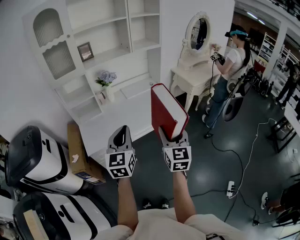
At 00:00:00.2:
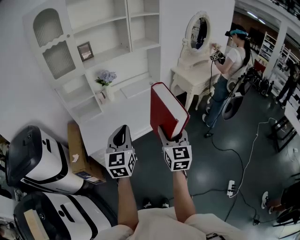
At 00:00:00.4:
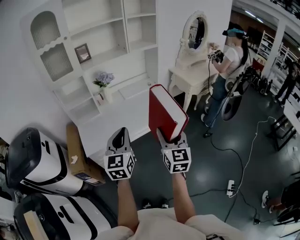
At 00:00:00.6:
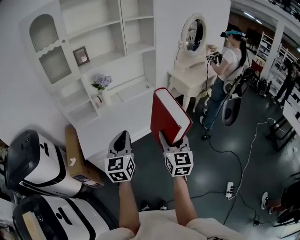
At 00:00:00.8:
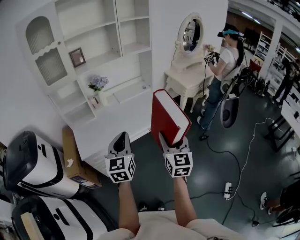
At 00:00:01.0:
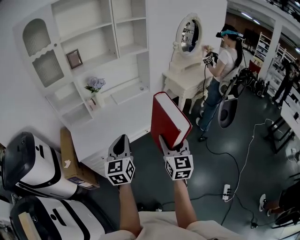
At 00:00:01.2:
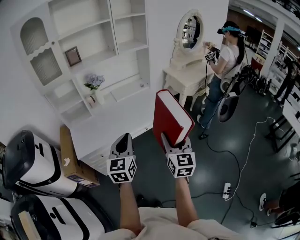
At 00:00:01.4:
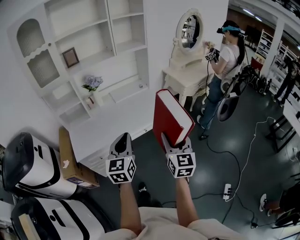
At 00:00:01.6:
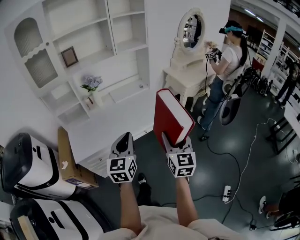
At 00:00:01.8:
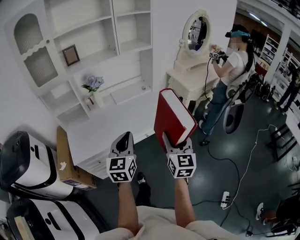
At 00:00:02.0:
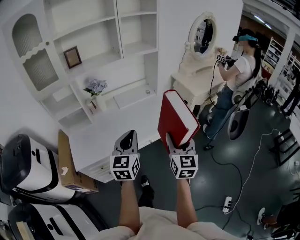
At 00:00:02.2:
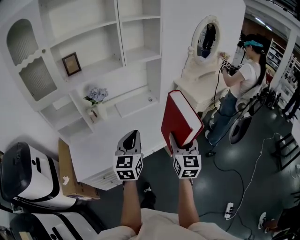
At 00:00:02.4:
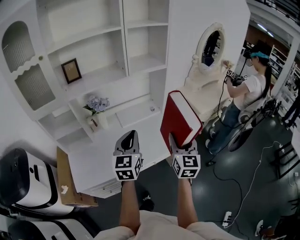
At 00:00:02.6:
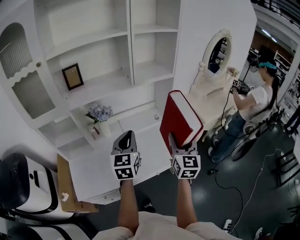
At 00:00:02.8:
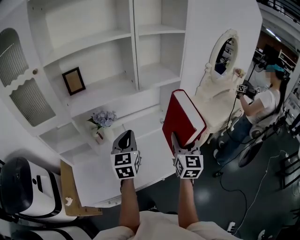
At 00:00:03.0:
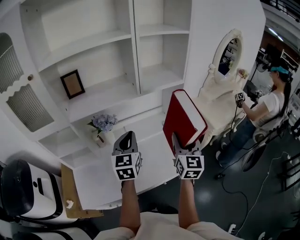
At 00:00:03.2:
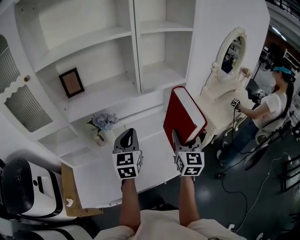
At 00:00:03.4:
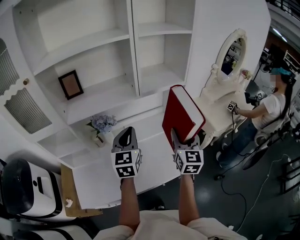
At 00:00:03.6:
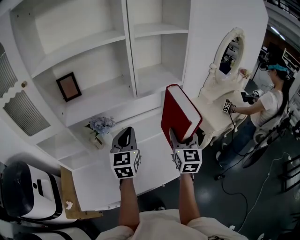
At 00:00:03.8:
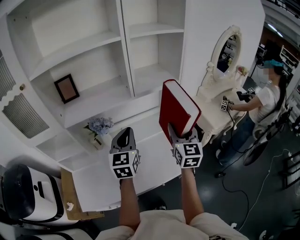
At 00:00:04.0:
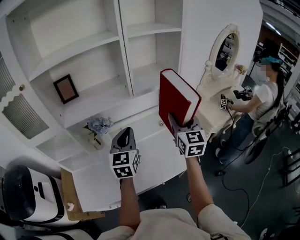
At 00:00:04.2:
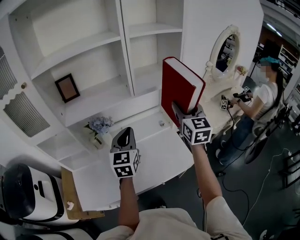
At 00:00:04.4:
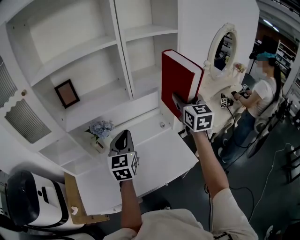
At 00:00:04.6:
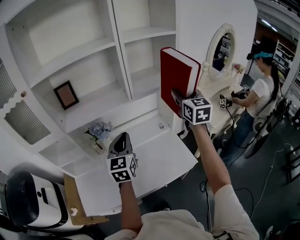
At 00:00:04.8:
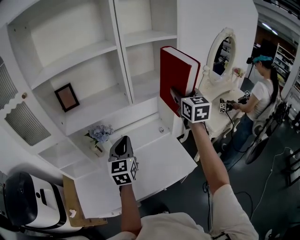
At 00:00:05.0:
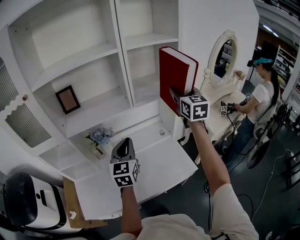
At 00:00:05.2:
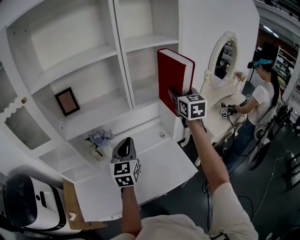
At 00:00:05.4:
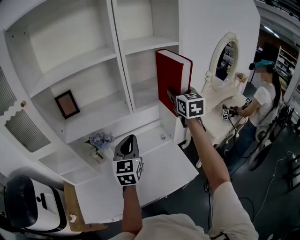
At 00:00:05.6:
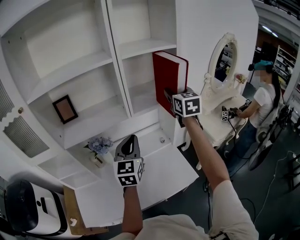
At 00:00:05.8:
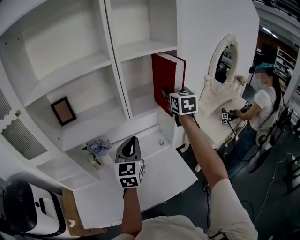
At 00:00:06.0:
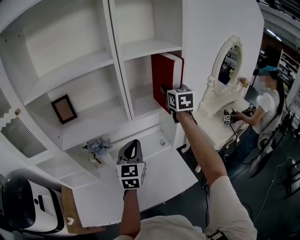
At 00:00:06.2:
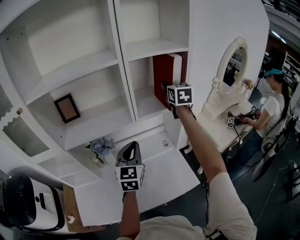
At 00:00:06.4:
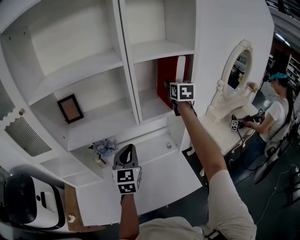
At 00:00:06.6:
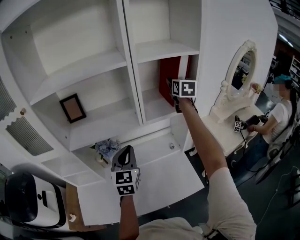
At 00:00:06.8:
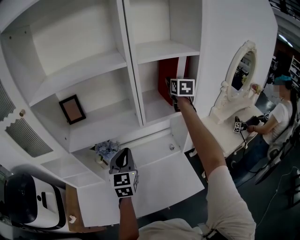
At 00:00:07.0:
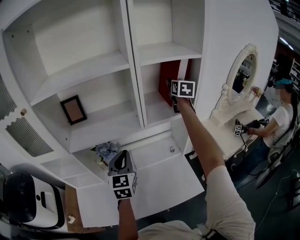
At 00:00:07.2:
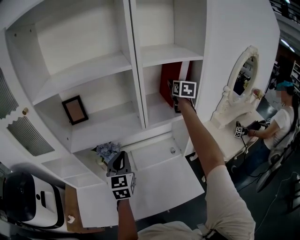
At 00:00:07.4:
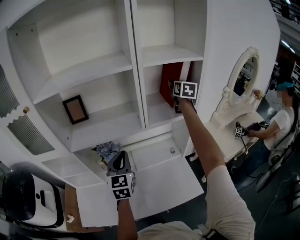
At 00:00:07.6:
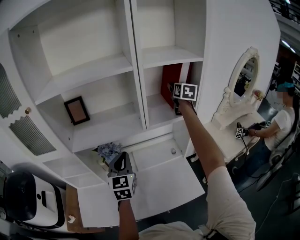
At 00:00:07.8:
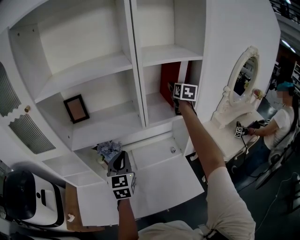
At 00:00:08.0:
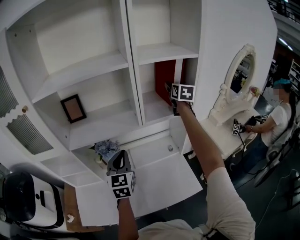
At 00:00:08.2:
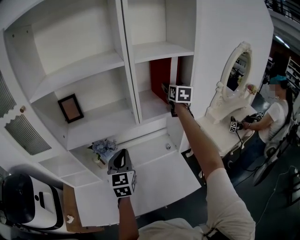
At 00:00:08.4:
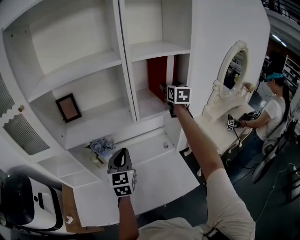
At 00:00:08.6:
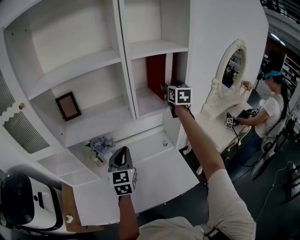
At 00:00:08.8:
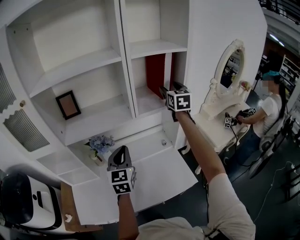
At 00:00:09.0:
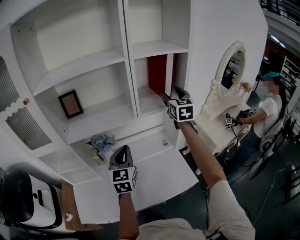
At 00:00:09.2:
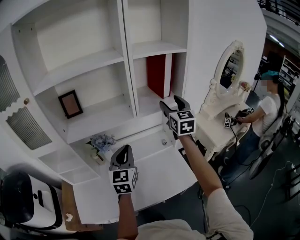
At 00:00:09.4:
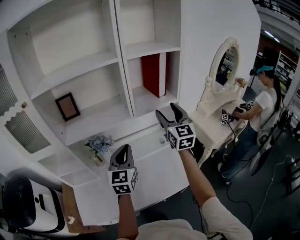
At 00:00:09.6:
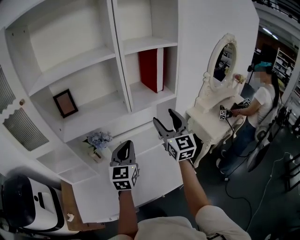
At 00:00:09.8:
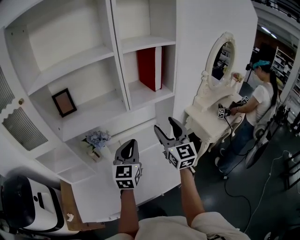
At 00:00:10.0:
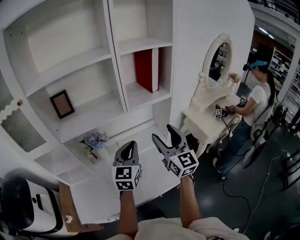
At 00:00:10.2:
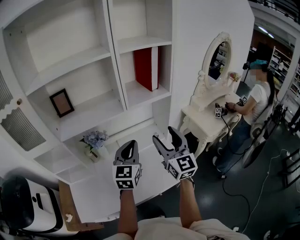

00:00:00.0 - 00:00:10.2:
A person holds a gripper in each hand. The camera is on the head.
00:00:00.0 - 00:00:01.4: Both grippers travel together to the right, approximately 10 cm.
00:00:01.4 - 00:00:03.0: The two grippers travel together, forward, about 50 cm.
00:00:03.0 - 00:00:04.4: The right gripper heads forward and upward, covering about 20 cm.
00:00:04.4 - 00:00:05.8: The left gripper goes about 10 cm forward and to the right. Meanwhile the right gripper travels forward by roughly 15 cm.
00:00:05.8 - 00:00:07.2: The right gripper shifts approximately 15 cm forward; the left gripper shifts approximately 10 cm to the left.
00:00:07.2 - 00:00:08.8: The right gripper moves backward, approximately 10 cm, while the left gripper changes place by roughly 5 cm.
00:00:08.8 - 00:00:10.2: The left gripper shifts approximately 5 cm to the right; the right gripper travels backward by about 30 cm.

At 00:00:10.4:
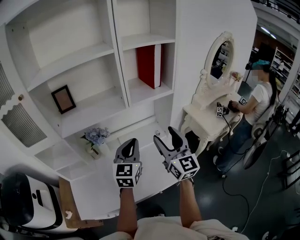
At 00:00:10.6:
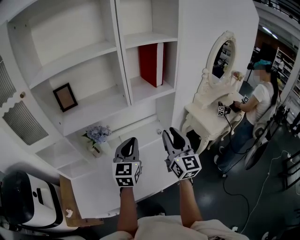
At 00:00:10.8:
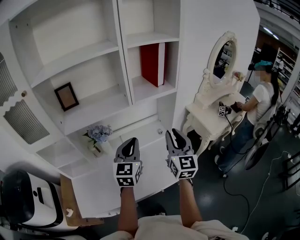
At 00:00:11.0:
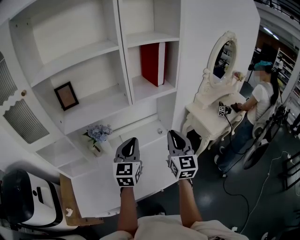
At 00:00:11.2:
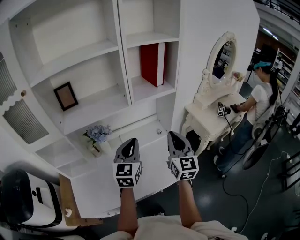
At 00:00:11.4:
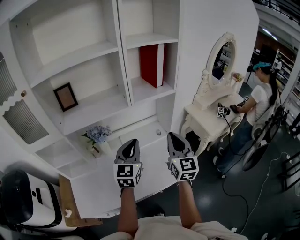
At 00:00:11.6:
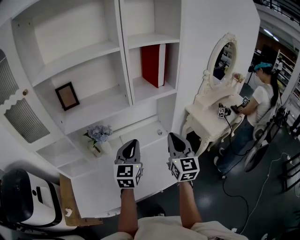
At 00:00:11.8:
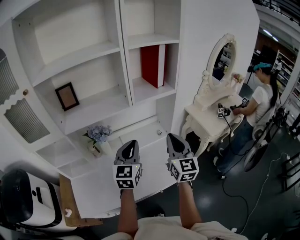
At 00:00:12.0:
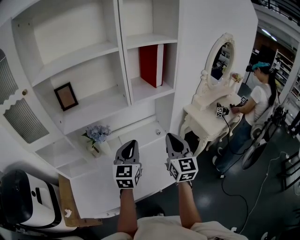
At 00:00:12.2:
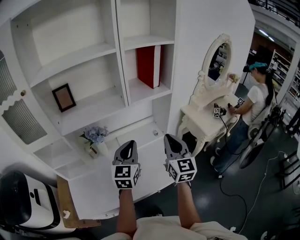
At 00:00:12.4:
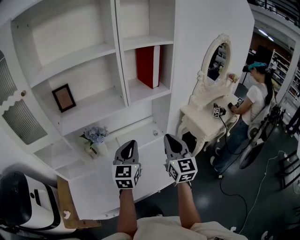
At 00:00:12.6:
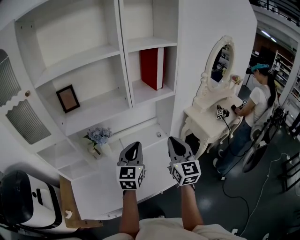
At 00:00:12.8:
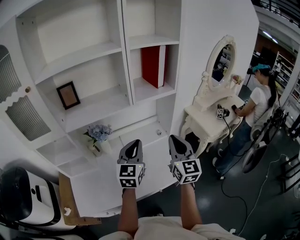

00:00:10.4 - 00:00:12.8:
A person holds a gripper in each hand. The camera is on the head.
00:00:10.4 - 00:00:11.6: The right gripper closes up.
00:00:11.6 - 00:00:12.8: There are only small adjustments of the grippers.

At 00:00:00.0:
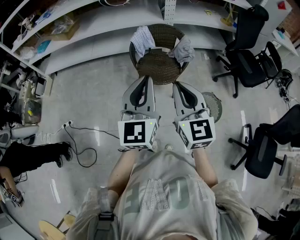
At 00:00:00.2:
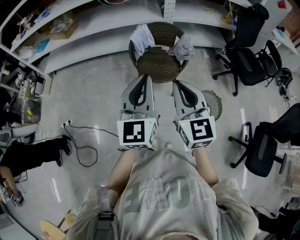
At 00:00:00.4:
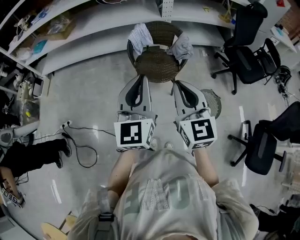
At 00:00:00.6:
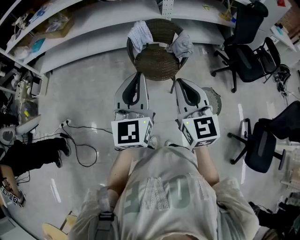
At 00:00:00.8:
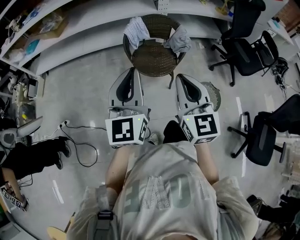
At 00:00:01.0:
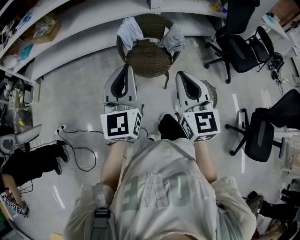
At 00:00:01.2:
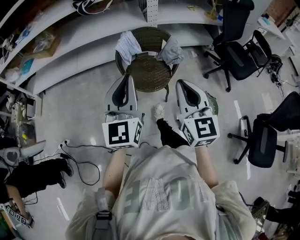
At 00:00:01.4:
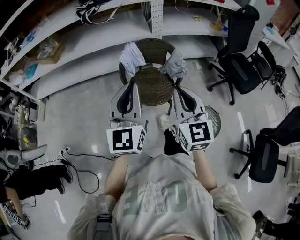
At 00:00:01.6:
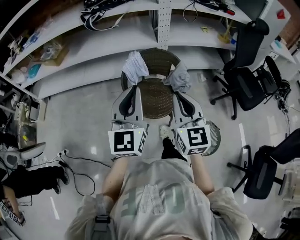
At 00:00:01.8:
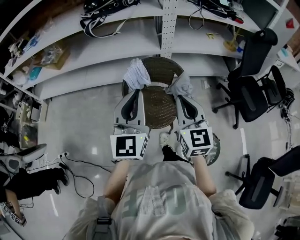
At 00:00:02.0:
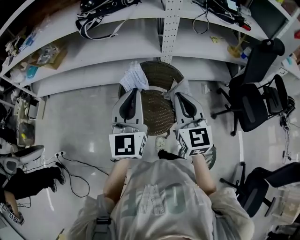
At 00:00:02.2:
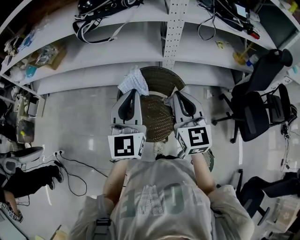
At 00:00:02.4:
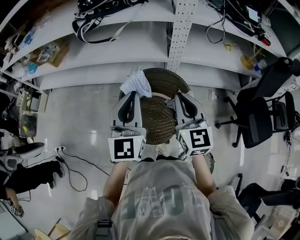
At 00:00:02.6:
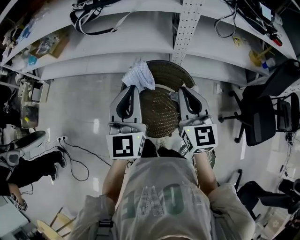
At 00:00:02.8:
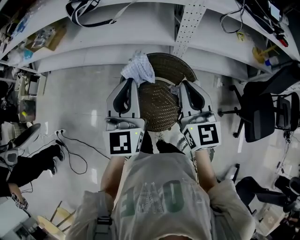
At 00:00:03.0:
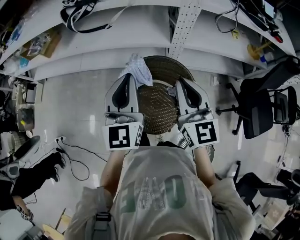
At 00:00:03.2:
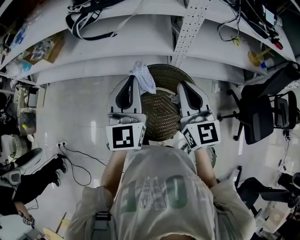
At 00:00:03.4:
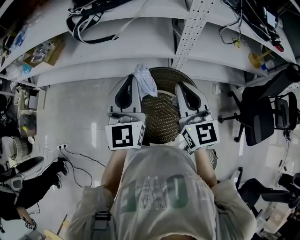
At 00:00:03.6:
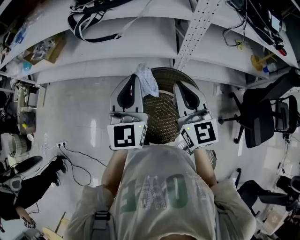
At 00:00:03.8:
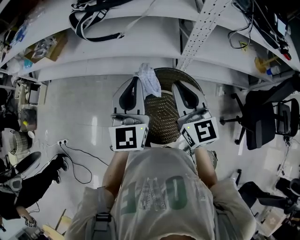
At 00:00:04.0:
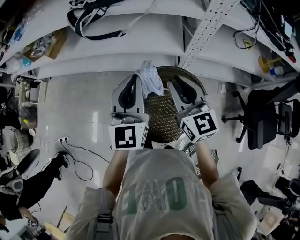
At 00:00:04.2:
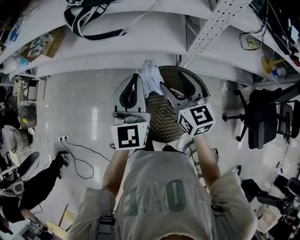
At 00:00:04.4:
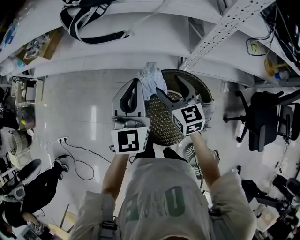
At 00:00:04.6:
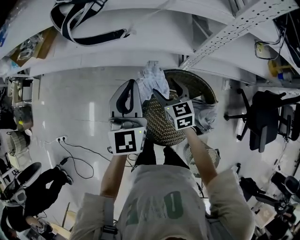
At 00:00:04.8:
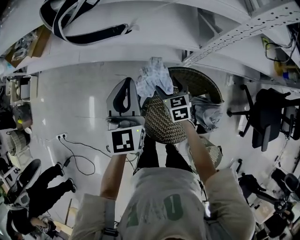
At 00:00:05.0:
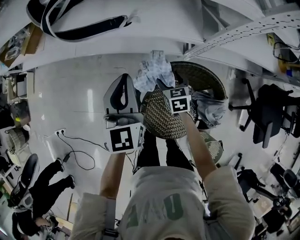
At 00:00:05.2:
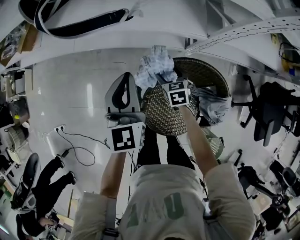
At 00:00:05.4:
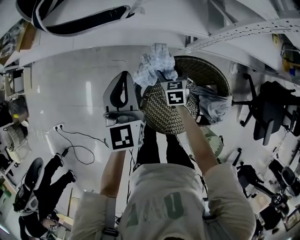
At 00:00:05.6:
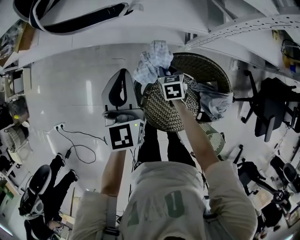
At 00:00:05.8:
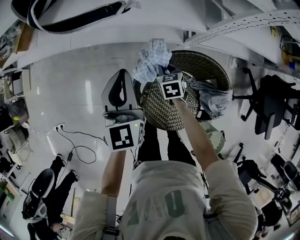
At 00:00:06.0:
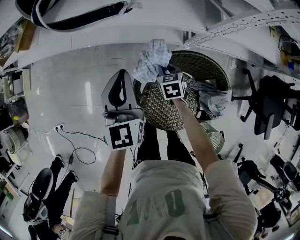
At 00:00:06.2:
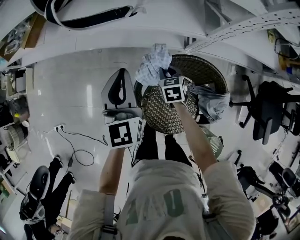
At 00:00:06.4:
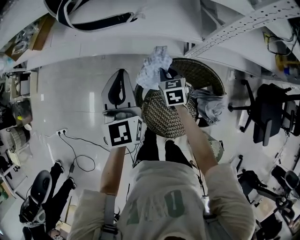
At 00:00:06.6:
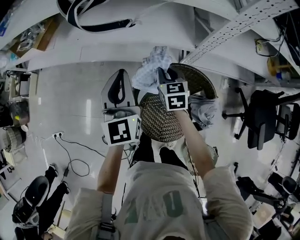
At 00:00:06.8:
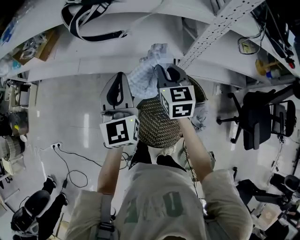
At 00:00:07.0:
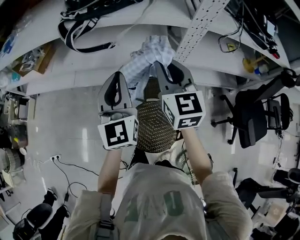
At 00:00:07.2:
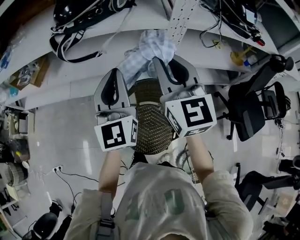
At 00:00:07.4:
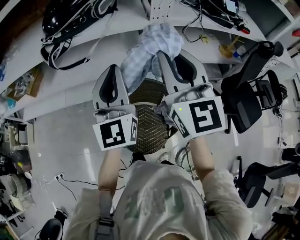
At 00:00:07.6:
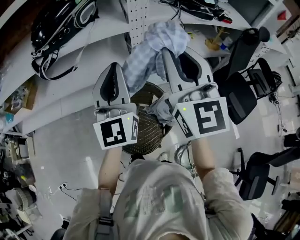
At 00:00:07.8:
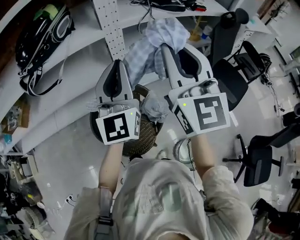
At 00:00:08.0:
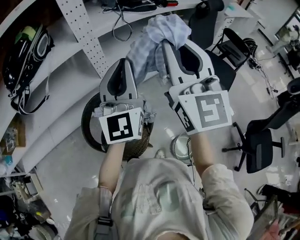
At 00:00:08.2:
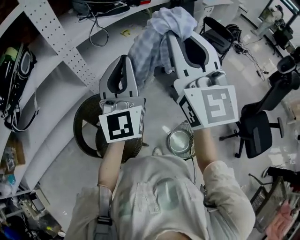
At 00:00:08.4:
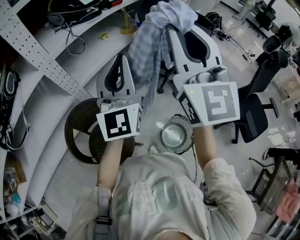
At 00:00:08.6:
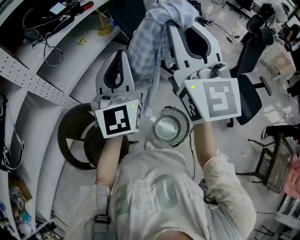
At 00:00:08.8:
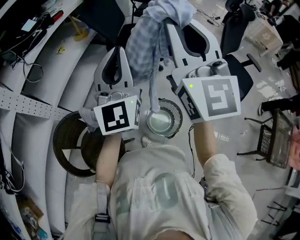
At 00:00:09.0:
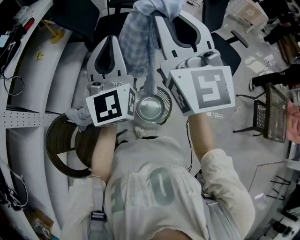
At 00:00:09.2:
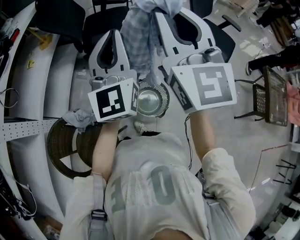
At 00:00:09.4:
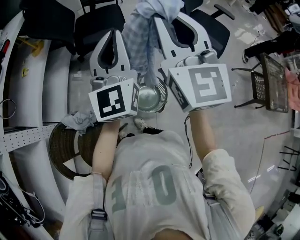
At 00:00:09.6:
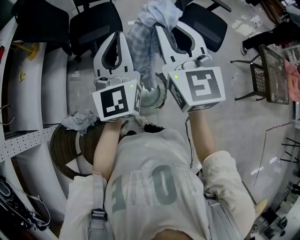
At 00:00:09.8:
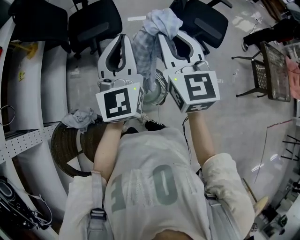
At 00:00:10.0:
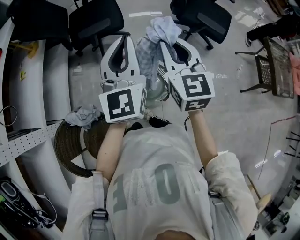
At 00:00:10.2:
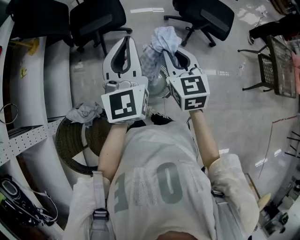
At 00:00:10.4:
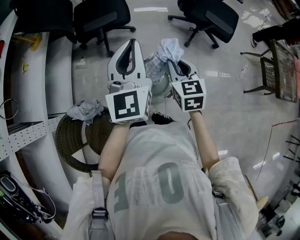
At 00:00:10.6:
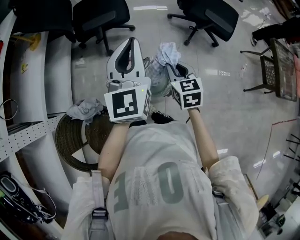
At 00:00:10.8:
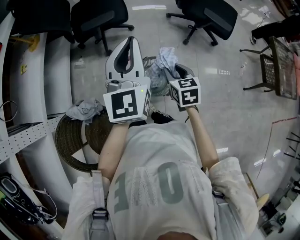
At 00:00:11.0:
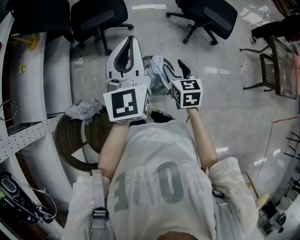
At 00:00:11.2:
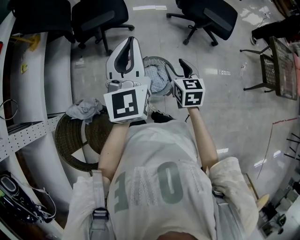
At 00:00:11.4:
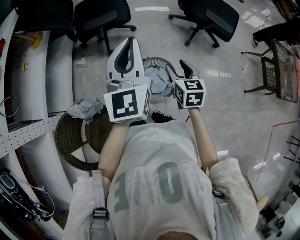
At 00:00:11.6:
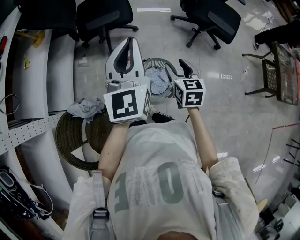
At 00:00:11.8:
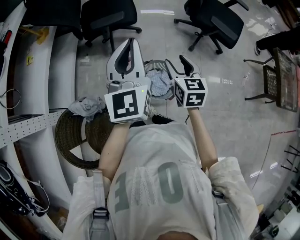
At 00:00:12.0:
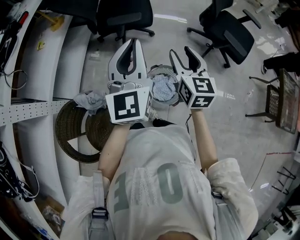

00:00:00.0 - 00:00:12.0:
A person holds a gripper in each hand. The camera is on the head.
00:00:00.0 - 00:00:01.6: Both grippers travel together forward, roughly 20 cm.
00:00:01.6 - 00:00:03.0: The grippers both shift forward by about 35 cm.
00:00:03.0 - 00:00:04.4: The right gripper is displaced downward, forward and to the left by roughly 25 cm, changes its angle by approximately 20 degrees, and opens up, while the left gripper travels forward and downward by roughly 15 cm.
00:00:04.4 - 00:00:06.0: The left gripper travels downward, to the left and forward by some 15 cm; the right gripper travels downward by some 25 cm, angles its fingers downward, by about 30 degrees, and closes its fingers.
00:00:06.0 - 00:00:07.6: The right gripper moves upward, roughly 60 cm, and angles its fingers upward, by some 70 degrees. Meanwhile the left gripper goes about 40 cm upward, to the right and backward, and rotates about 30 degrees.
00:00:07.6 - 00:00:09.0: The two grippers travel together, approximately 50 cm. The right gripper rotates roughly 60 degrees, while the left gripper swivels approximately 60 degrees.
00:00:09.0 - 00:00:10.4: The left gripper is displaced downward and to the right by approximately 15 cm, and swivels approximately 20 degrees, while the right gripper travels downward by roughly 35 cm, and points its fingers roughly 40 degrees further downward.
00:00:10.4 - 00:00:12.0: The right gripper travels upward by approximately 10 cm, and opens. The left gripper is displaced to the left by some 5 cm.
